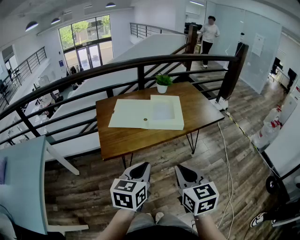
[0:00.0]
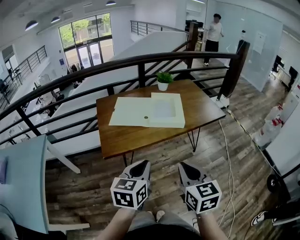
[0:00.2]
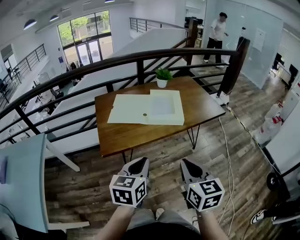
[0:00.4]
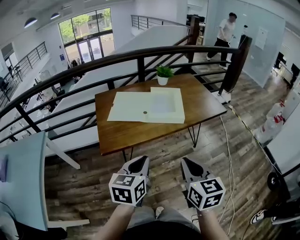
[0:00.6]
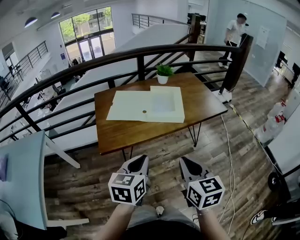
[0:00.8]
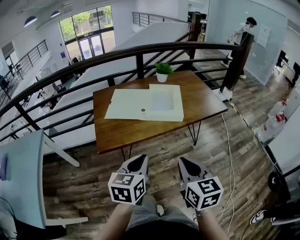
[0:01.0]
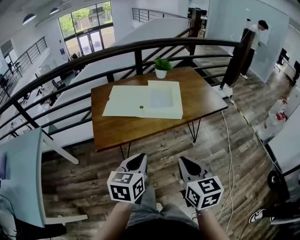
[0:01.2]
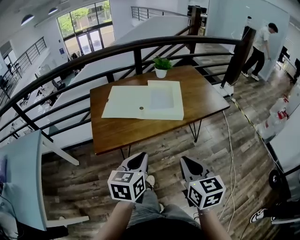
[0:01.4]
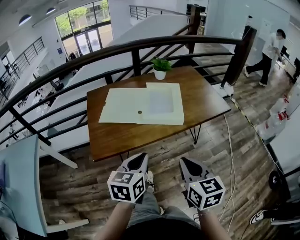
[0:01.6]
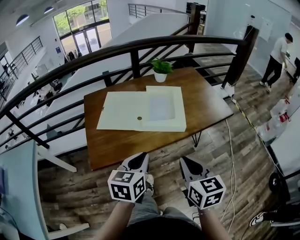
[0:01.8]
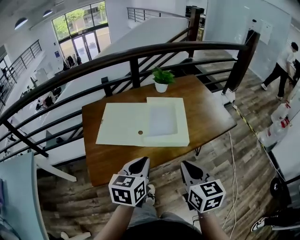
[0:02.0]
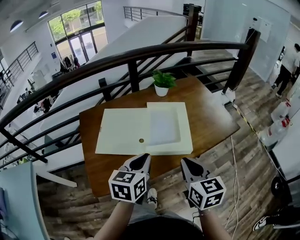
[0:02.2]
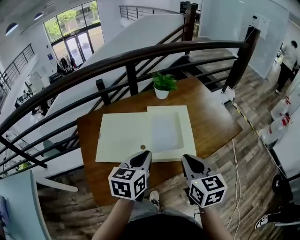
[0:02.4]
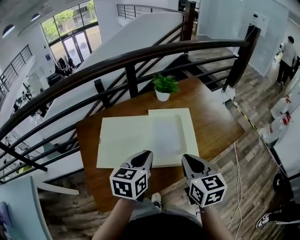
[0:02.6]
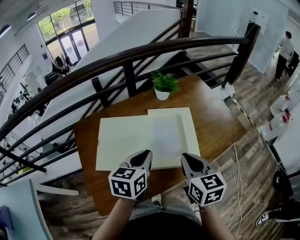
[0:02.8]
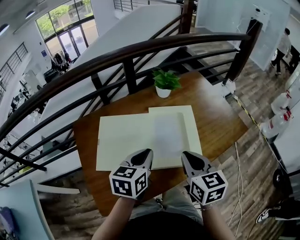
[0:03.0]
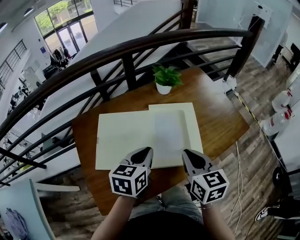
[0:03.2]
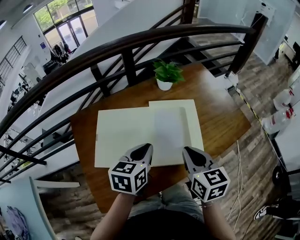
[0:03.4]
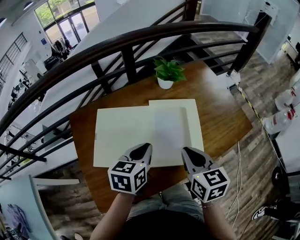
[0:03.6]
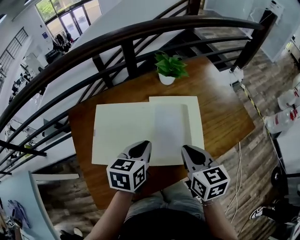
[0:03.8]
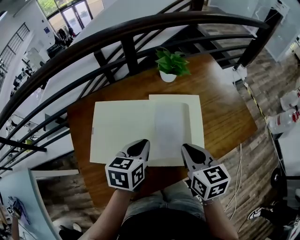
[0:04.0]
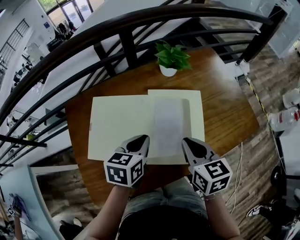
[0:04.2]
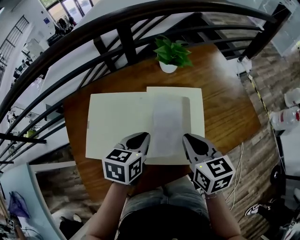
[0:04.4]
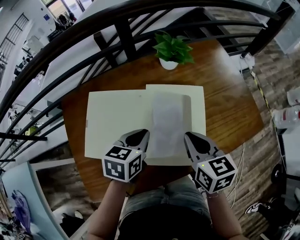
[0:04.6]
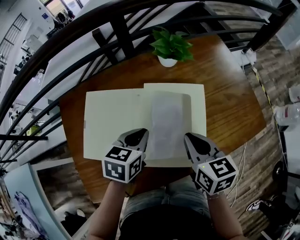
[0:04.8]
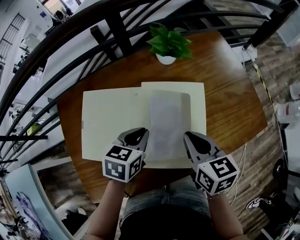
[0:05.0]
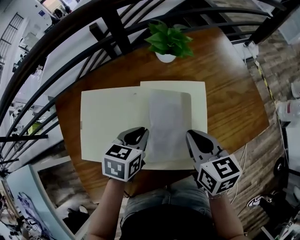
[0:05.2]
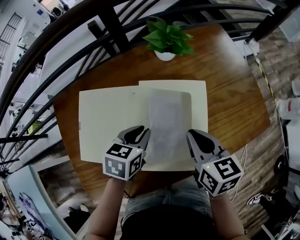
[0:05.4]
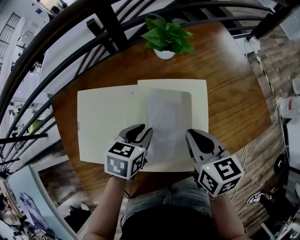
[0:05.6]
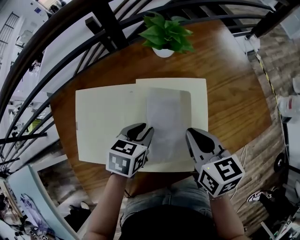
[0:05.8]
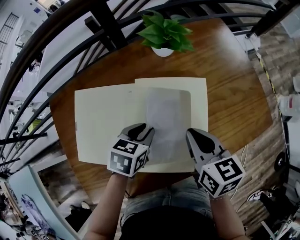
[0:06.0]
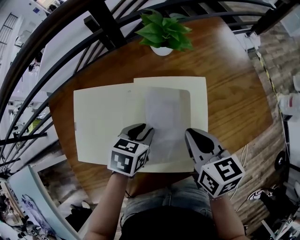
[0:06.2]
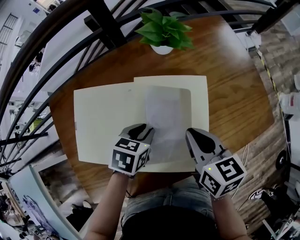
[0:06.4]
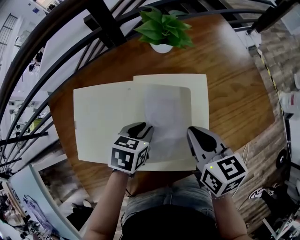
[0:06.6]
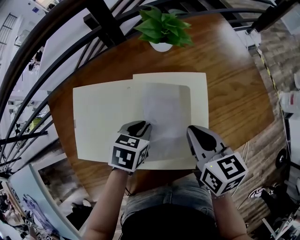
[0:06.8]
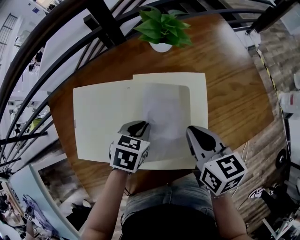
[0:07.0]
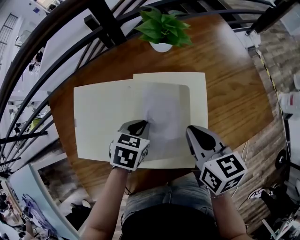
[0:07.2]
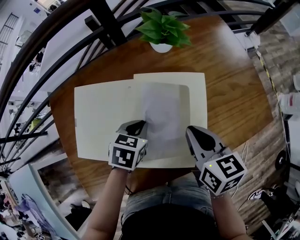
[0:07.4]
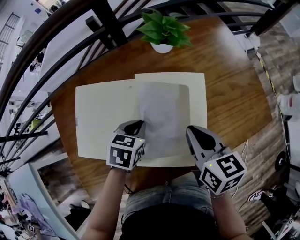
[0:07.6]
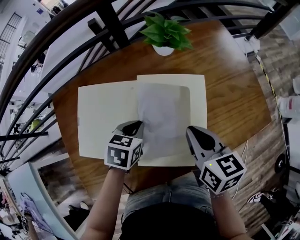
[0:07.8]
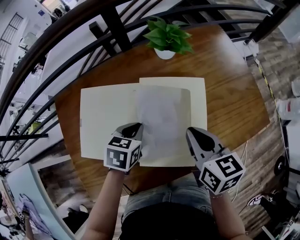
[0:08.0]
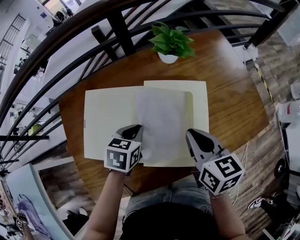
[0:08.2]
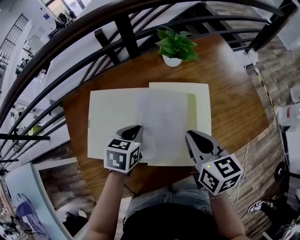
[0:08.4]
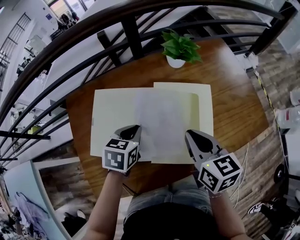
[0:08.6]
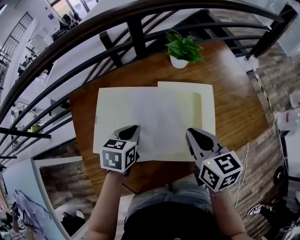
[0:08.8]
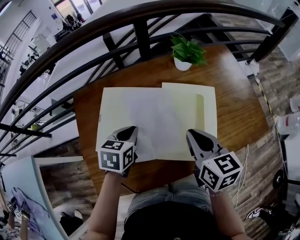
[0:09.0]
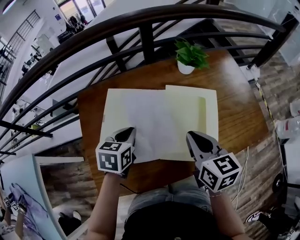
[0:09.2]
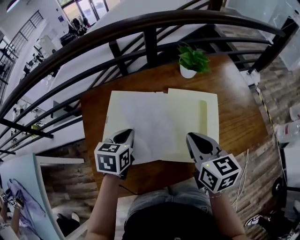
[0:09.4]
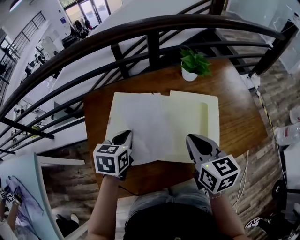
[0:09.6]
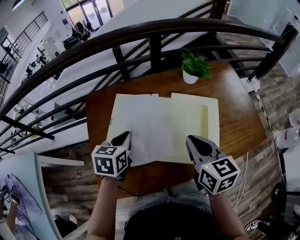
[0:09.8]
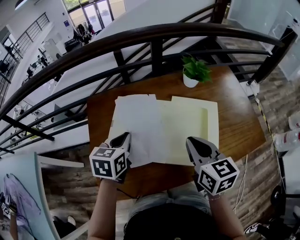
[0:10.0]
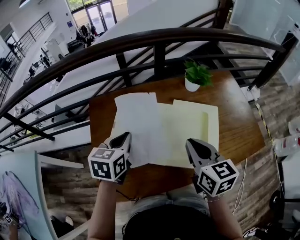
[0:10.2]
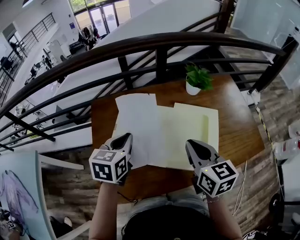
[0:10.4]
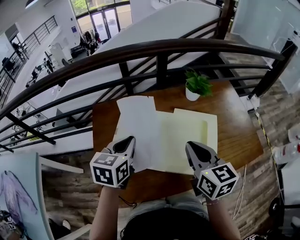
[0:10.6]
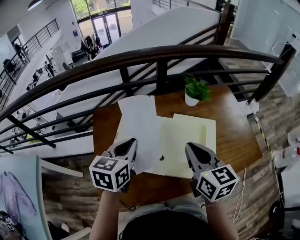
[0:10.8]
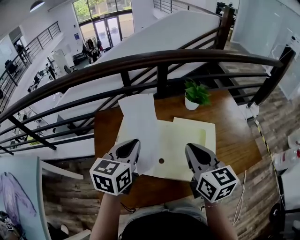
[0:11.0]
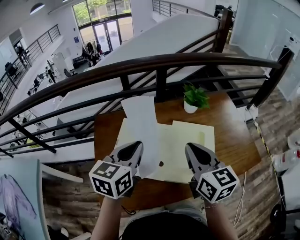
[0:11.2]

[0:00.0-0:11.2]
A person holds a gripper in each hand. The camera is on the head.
0.0 to 1.6 s: The left gripper shifts roughly 10 cm forward. The right gripper moves forward and to the right, roughly 10 cm.
1.6 to 3.2 s: The grippers both shift forward by approximately 30 cm.
3.2 to 4.8 s: The two grippers go roughly 10 cm forward and downward.
4.8 to 6.4 s: The left gripper moves downward, some 10 cm.
6.4 to 8.0 s: The grippers move only a little.
8.0 to 9.6 s: The left gripper shifts approximately 15 cm to the left and upward. Meanwhile the right gripper is displaced to the left and upward by some 10 cm.
9.6 to 11.2 s: The right gripper goes roughly 10 cm upward. Meanwhile the left gripper shifts roughly 15 cm upward, and changes its angle by approximately 20 degrees.

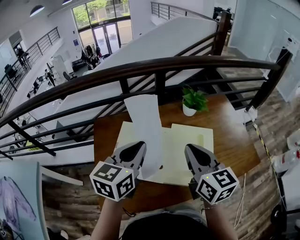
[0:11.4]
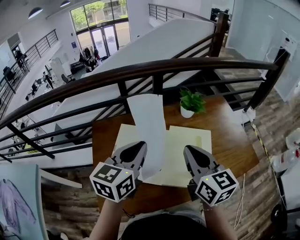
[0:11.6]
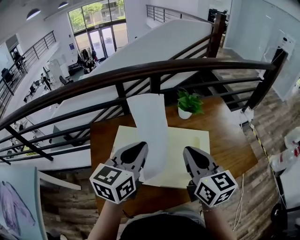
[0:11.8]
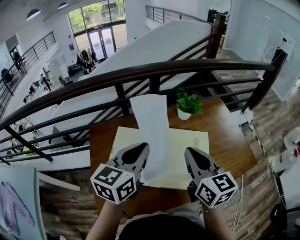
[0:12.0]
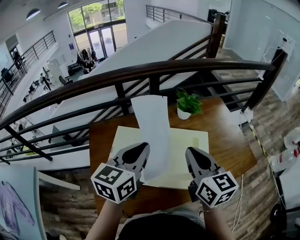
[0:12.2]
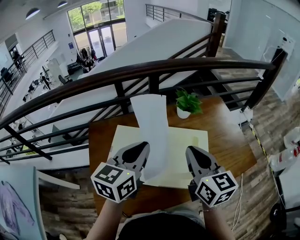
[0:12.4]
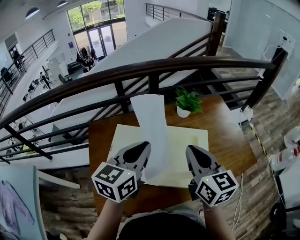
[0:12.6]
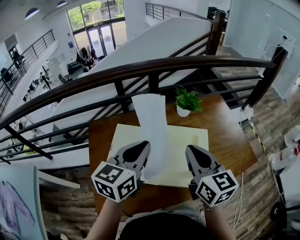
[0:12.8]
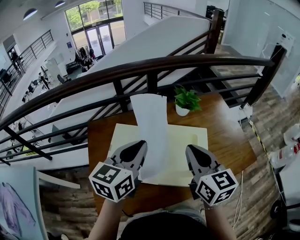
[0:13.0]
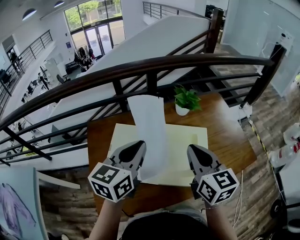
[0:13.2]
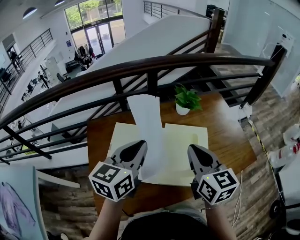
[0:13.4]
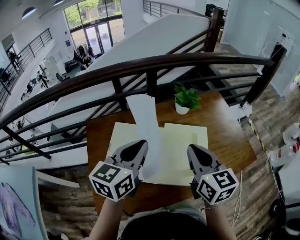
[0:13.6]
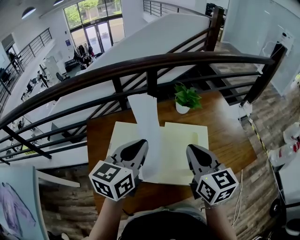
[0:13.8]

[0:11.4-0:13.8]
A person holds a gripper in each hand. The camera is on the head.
11.4 to 13.8 s: There are only small adjustments of the grippers.

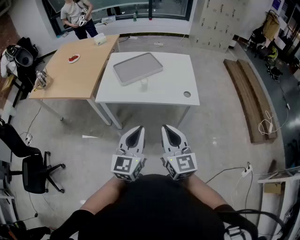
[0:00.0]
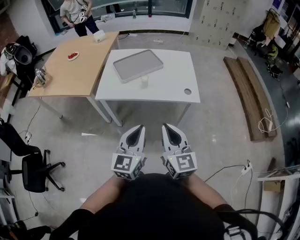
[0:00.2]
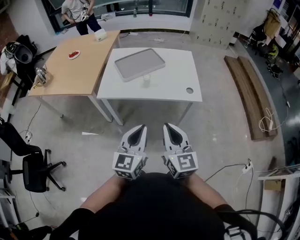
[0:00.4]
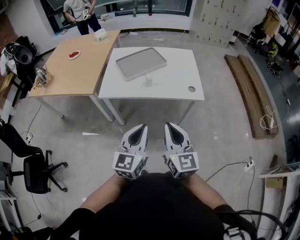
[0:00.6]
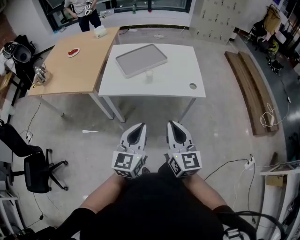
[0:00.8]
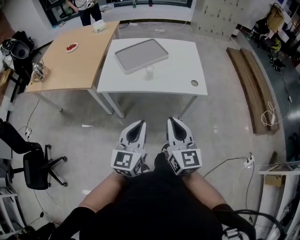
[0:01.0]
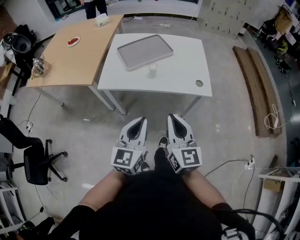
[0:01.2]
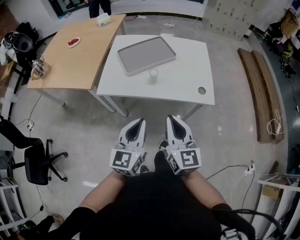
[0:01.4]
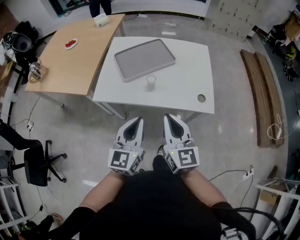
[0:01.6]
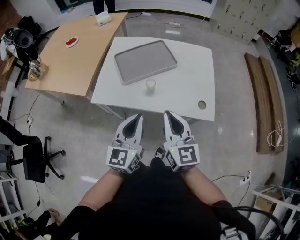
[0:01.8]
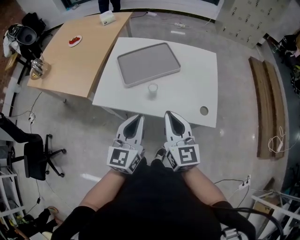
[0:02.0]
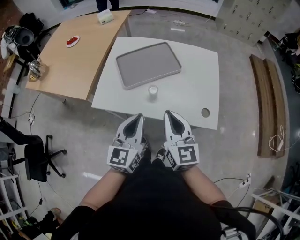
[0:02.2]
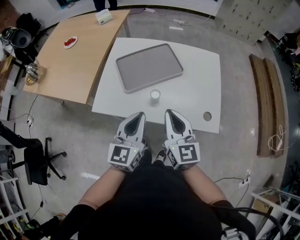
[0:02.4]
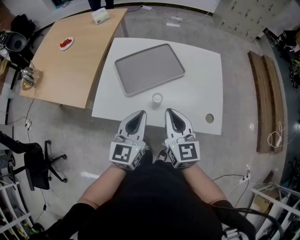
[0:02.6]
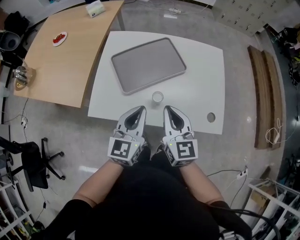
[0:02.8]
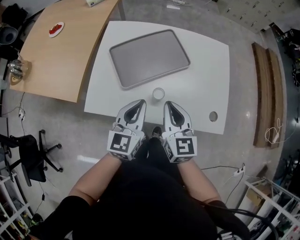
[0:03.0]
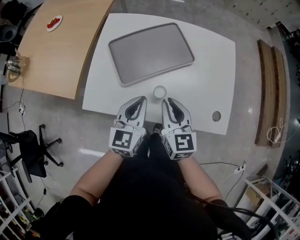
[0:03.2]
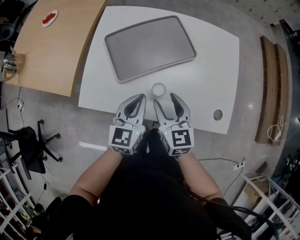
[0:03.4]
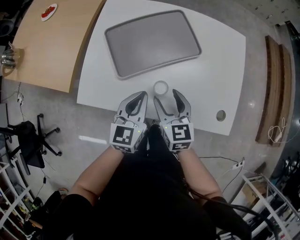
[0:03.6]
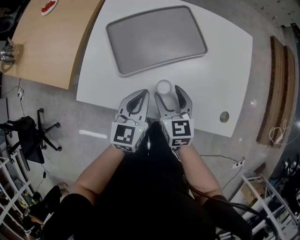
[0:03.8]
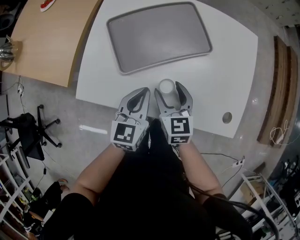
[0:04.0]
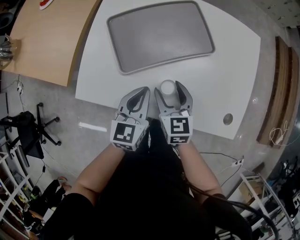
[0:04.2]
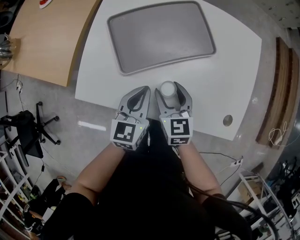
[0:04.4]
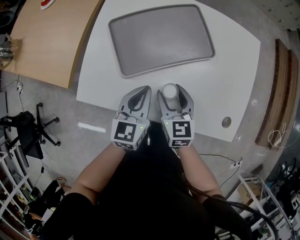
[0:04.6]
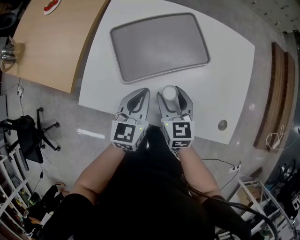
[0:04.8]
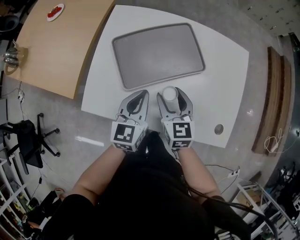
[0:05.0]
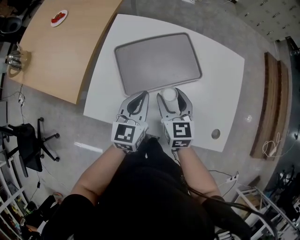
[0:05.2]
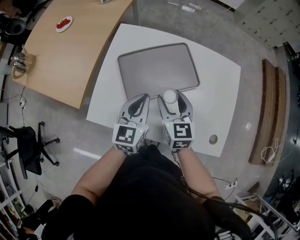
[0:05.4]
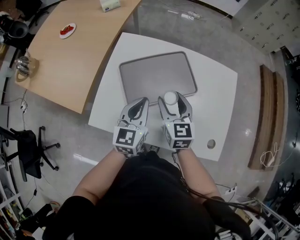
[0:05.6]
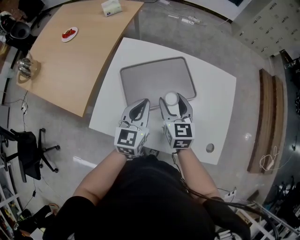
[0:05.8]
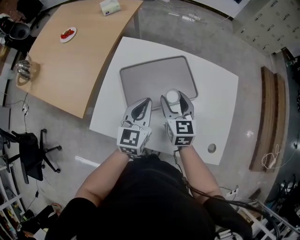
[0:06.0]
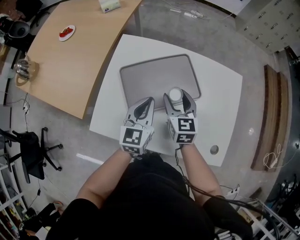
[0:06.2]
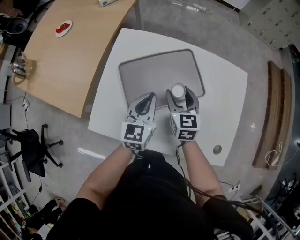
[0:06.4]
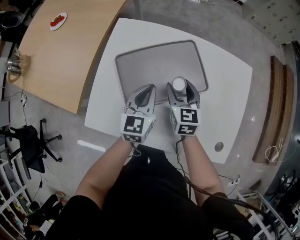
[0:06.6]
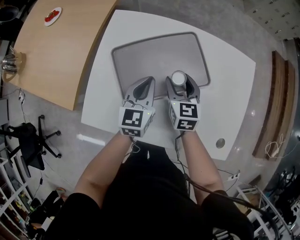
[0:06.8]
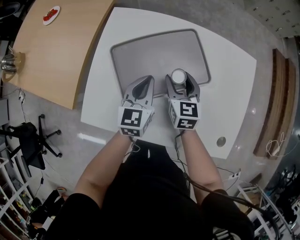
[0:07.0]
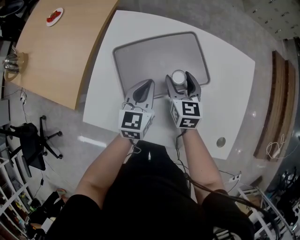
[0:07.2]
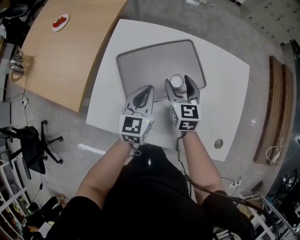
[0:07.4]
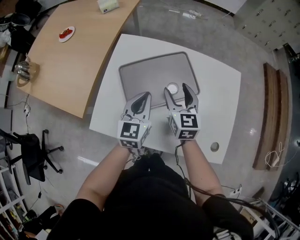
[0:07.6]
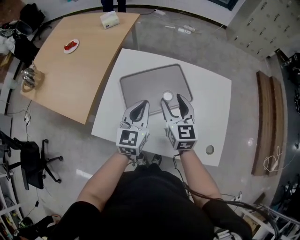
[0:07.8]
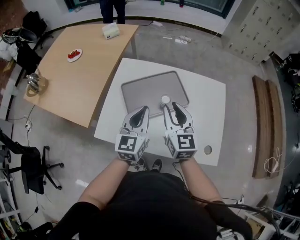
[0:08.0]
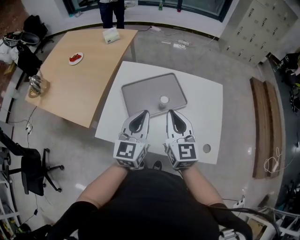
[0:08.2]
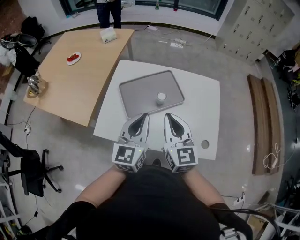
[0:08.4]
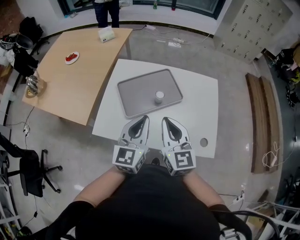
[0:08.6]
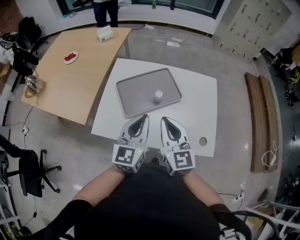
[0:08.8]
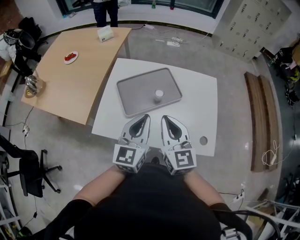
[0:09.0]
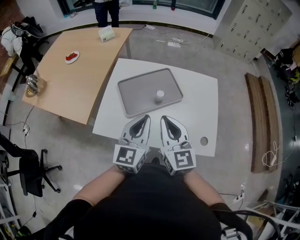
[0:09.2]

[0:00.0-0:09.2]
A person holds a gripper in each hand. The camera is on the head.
0.0 to 1.6 s: Both grippers move forward, some 20 cm.
1.6 to 3.0 s: The left gripper moves forward, about 25 cm; the right gripper heads forward and downward, covering some 30 cm.
3.0 to 4.6 s: Both grippers travel together downward and forward, about 15 cm. The right gripper opens.
4.6 to 6.2 s: The right gripper goes some 20 cm forward and upward. Meanwhile the left gripper is displaced upward and forward by about 15 cm.
6.2 to 7.6 s: The left gripper reaches about 10 cm downward, then returns. The right gripper reaches roughly 10 cm downward, then returns.
7.6 to 9.2 s: The two grippers go some 25 cm backward and upward. The right gripper closes.

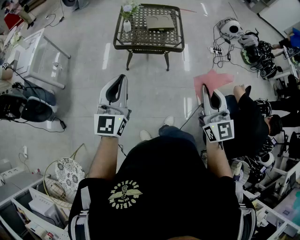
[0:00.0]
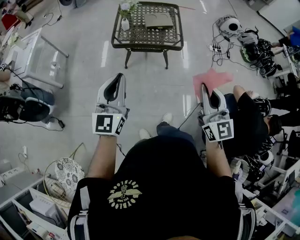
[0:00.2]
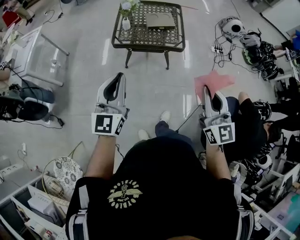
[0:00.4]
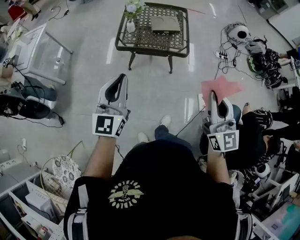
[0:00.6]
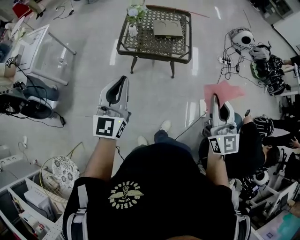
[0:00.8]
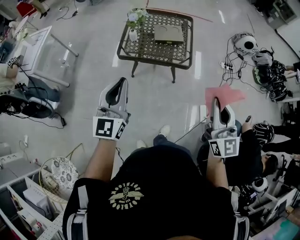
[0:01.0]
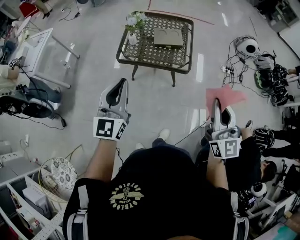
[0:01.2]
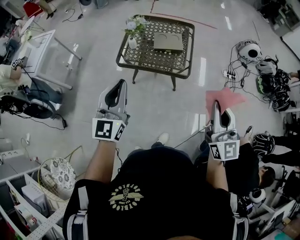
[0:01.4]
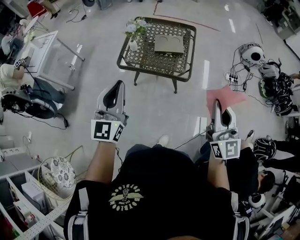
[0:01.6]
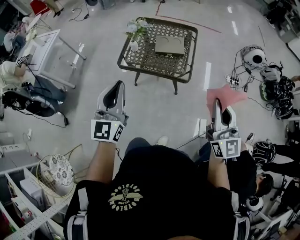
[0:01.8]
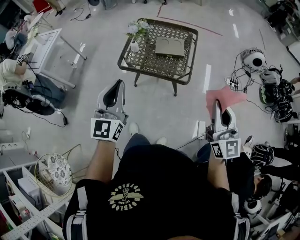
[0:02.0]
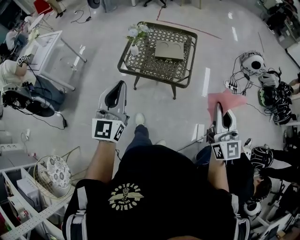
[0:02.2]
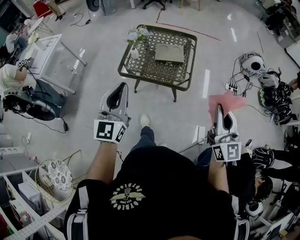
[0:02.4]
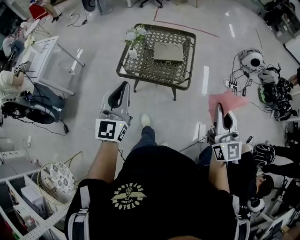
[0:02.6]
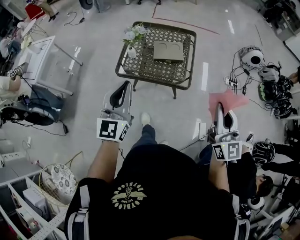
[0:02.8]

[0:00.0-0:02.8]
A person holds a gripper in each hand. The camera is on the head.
0.0 to 1.4 s: Both grippers move forward and to the right, roughly 25 cm.
1.4 to 2.8 s: Both grippers move forward, about 10 cm.
